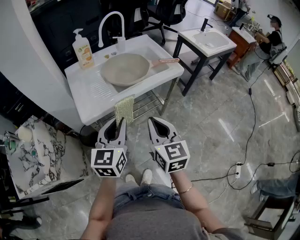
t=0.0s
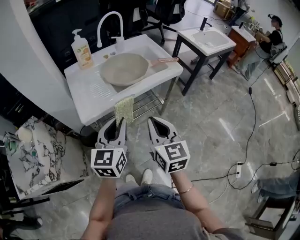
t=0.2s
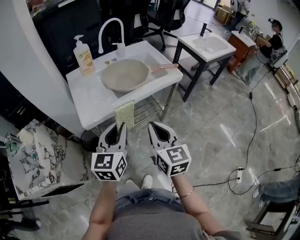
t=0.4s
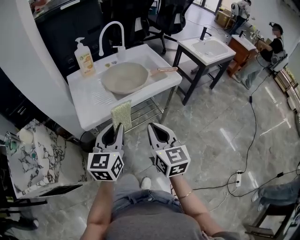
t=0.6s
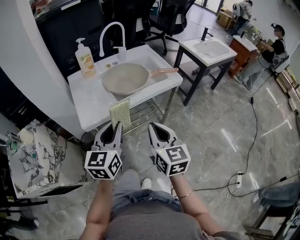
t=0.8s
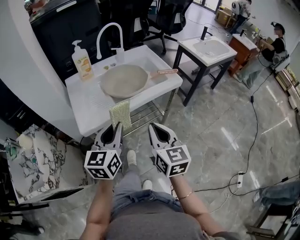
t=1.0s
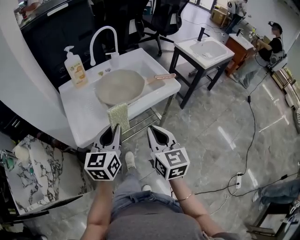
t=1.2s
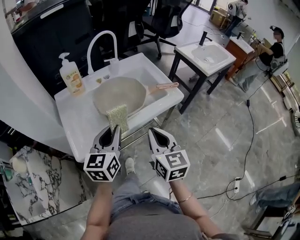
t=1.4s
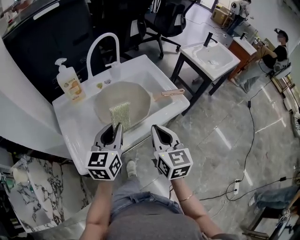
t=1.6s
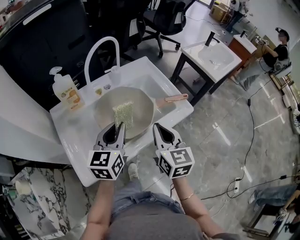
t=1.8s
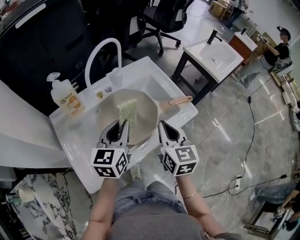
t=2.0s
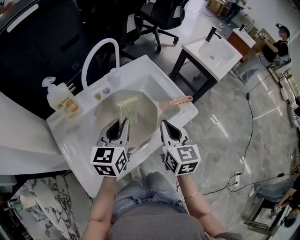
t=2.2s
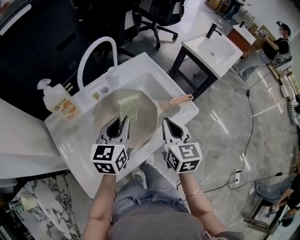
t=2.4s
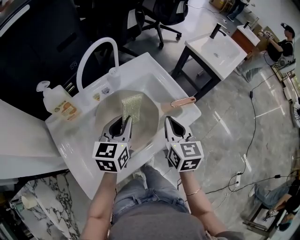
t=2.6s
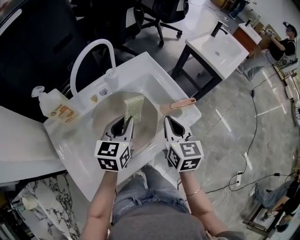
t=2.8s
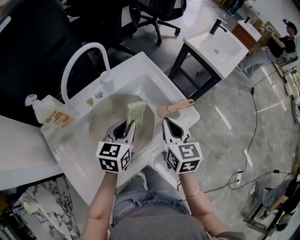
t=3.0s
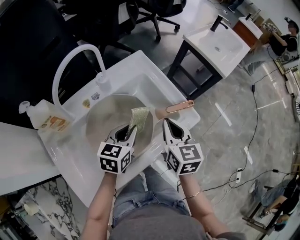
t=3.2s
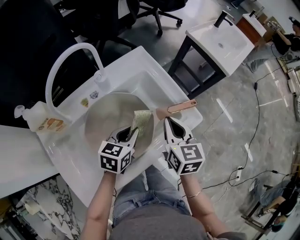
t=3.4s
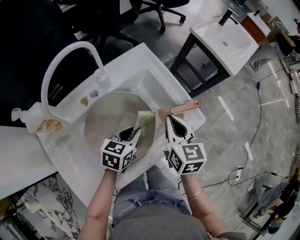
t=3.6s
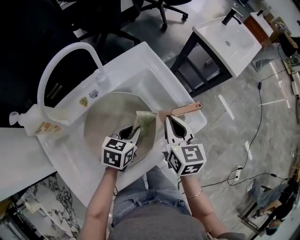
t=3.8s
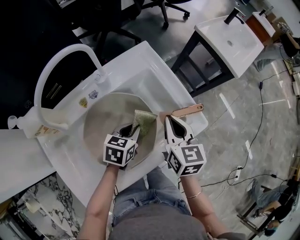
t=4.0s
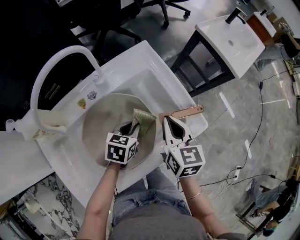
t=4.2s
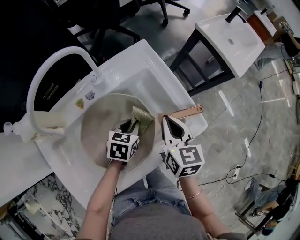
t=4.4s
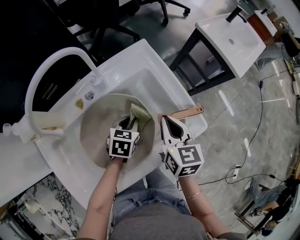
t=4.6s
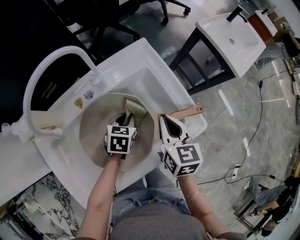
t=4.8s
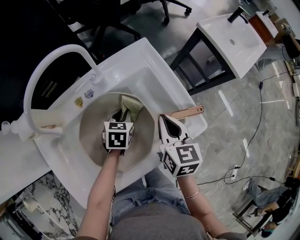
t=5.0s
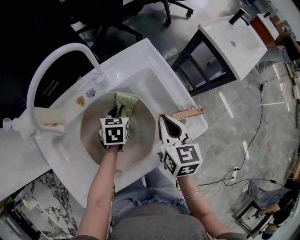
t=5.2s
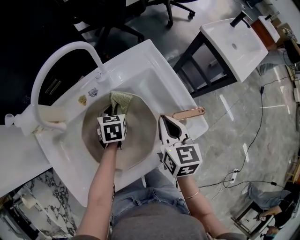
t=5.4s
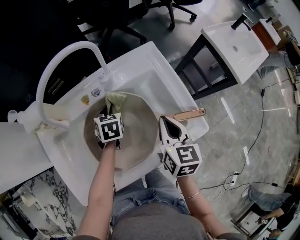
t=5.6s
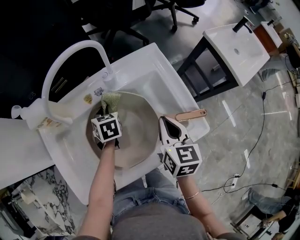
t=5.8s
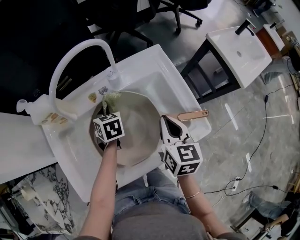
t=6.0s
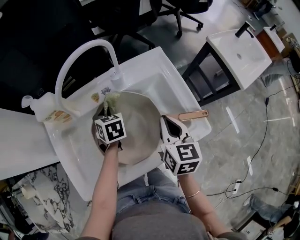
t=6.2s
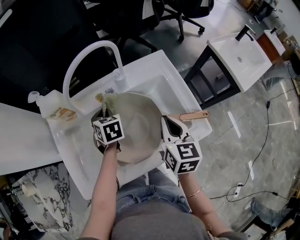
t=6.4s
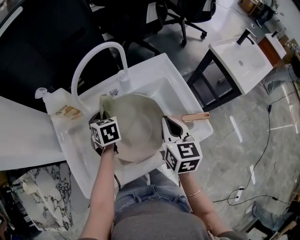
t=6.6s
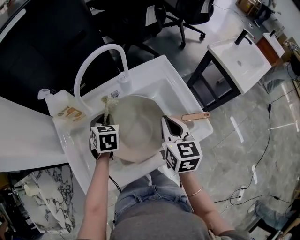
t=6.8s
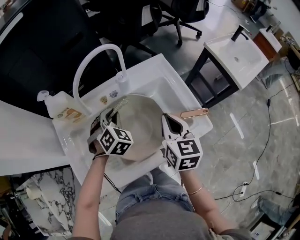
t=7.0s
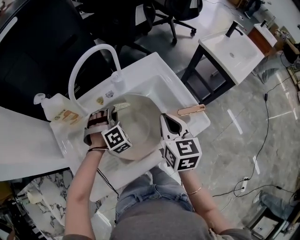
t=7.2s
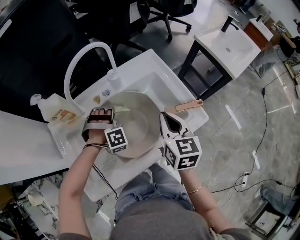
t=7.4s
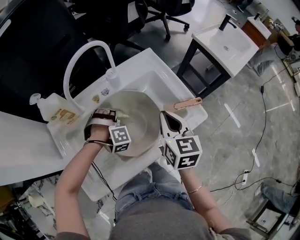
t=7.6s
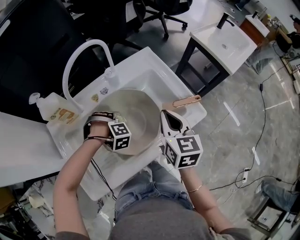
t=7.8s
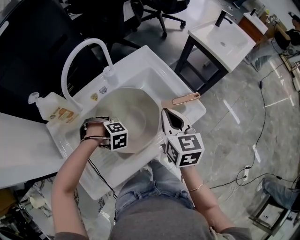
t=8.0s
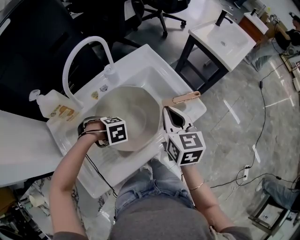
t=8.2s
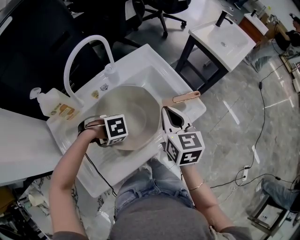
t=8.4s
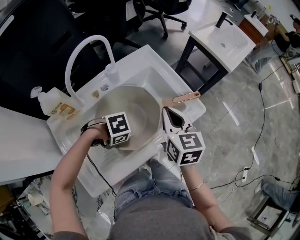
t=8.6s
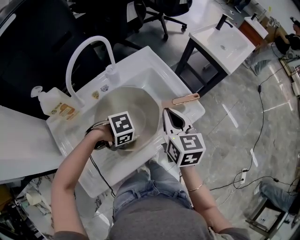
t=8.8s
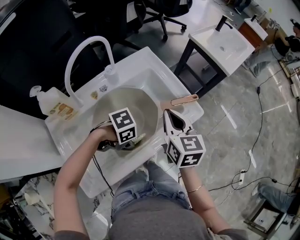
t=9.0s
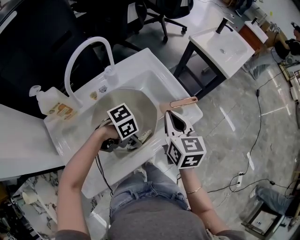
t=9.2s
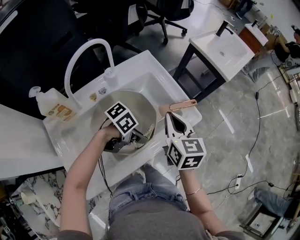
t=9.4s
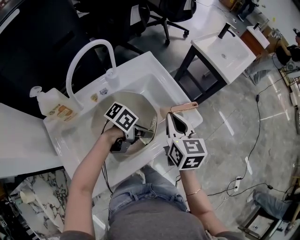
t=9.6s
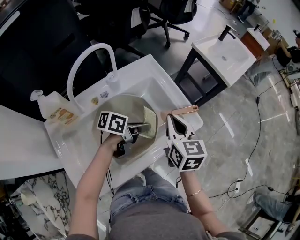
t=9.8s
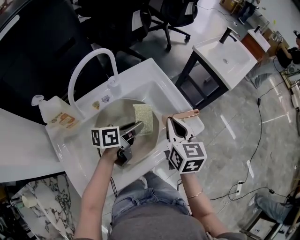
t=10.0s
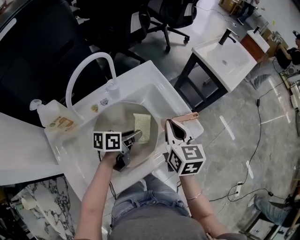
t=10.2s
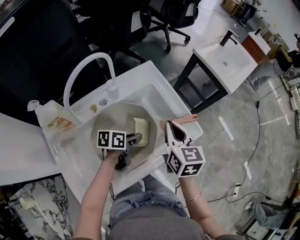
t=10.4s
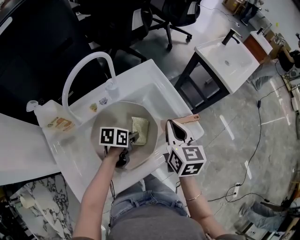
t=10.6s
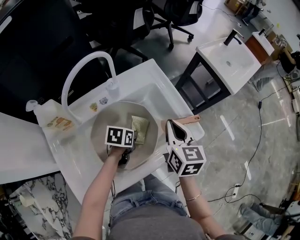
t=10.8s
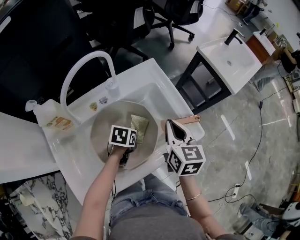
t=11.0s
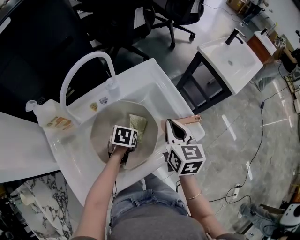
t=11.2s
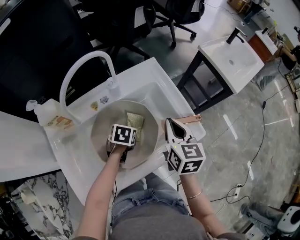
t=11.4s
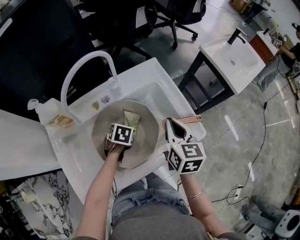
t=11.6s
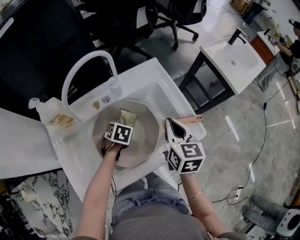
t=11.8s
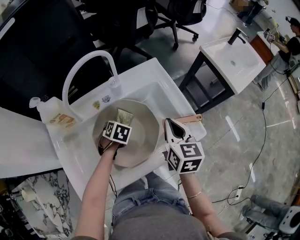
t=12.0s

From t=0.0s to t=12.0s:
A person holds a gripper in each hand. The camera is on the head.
From t=0.0s to t=1.6s: Both grippers move forward, some 25 cm.
From t=1.6s to t=3.0s: The right gripper moves forward, some 20 cm. The left gripper is displaced forward and downward by some 20 cm.
From t=3.0s to t=4.4s: The right gripper heads forward, covering about 5 cm. The left gripper heads downward and forward, covering some 15 cm, and turns by about 20 degrees.
From t=4.4s to t=6.0s: The left gripper ends up some 20 cm from where it was, and turns by some 40 degrees.
From t=6.0s to t=7.6s: The left gripper heads backward, covering about 5 cm, travels upward and back again, some 10 cm each way, and twists approximately 110 degrees clockwise, seen from behind; the right gripper shifts by about 5 cm.
From t=7.6s to t=9.0s: The left gripper changes place by about 20 cm, and rotates approximately 80 degrees.
From t=9.0s to t=10.4s: The left gripper reaches some 5 cm upward, then returns, and swivels about 70 degrees.
From t=10.4s to t=12.0s: The left gripper moves approximately 15 cm, and tips its fingers downward by about 40 degrees.

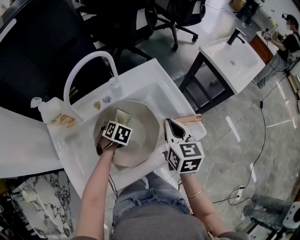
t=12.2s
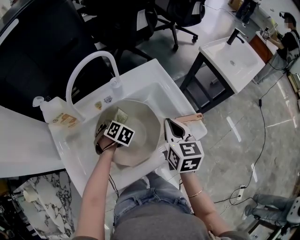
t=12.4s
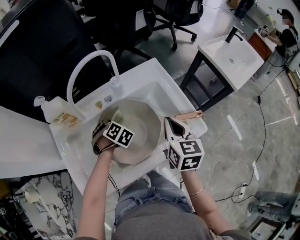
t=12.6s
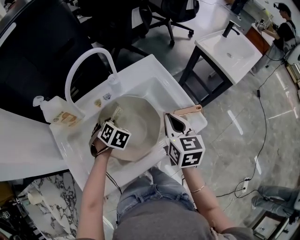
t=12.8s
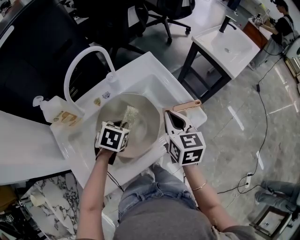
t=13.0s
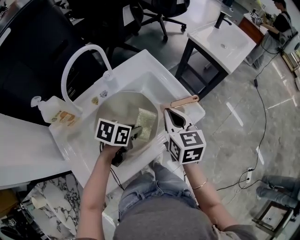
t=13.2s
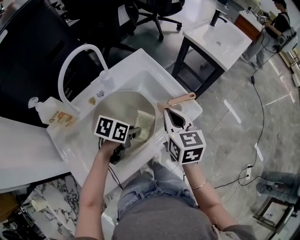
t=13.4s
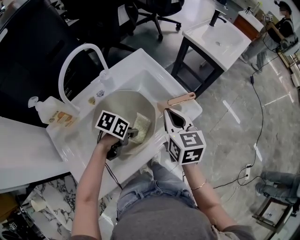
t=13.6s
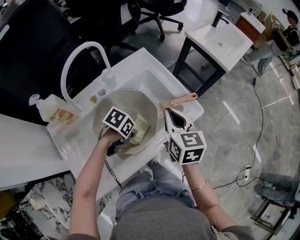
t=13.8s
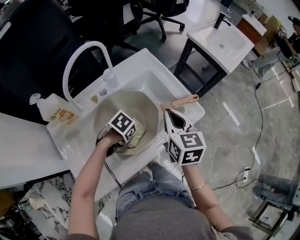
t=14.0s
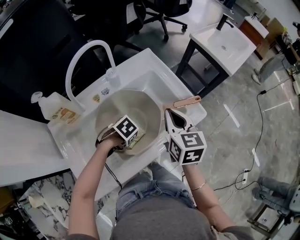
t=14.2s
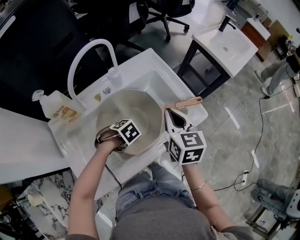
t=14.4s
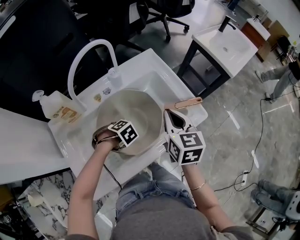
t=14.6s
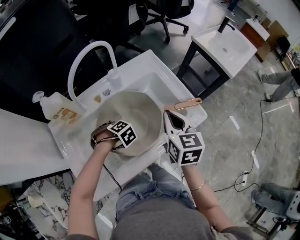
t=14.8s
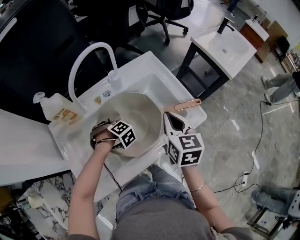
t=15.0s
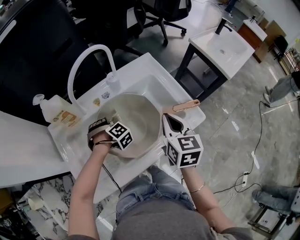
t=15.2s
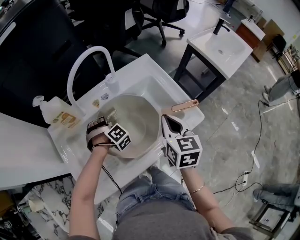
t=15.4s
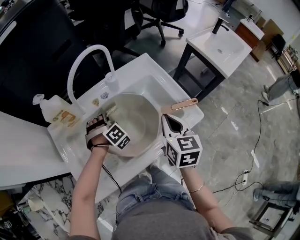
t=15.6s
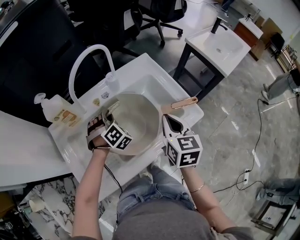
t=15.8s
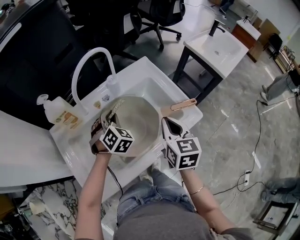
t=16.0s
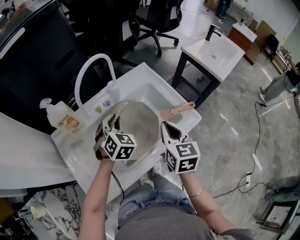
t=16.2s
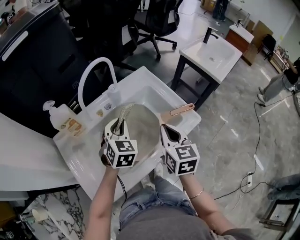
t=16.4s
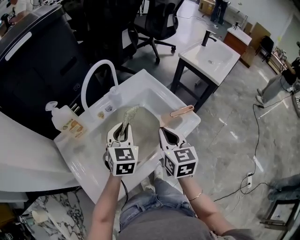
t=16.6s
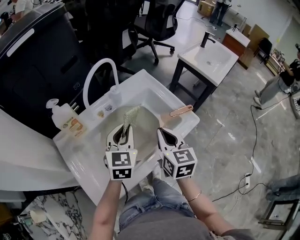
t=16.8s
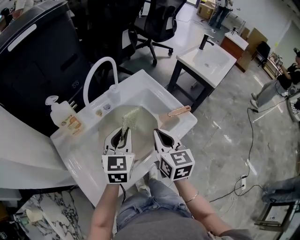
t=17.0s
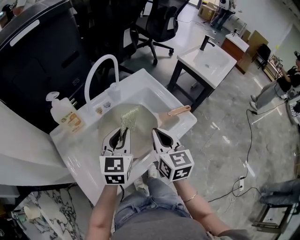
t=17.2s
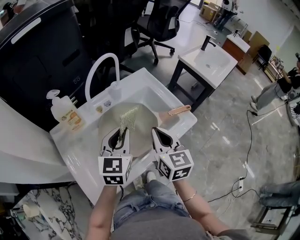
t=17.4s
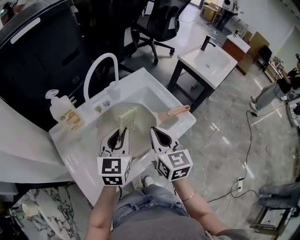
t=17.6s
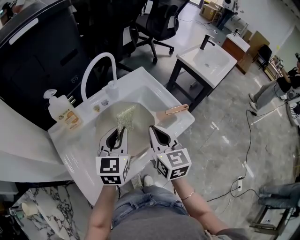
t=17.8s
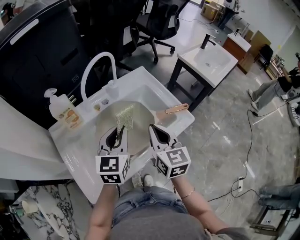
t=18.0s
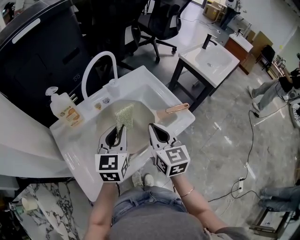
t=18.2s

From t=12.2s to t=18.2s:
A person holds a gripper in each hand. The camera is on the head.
From t=12.2s to t=13.8s: The left gripper goes upward and returns, approximately 10 cm each way, and turns by roughly 50 degrees.
From t=13.8s to t=15.2s: The left gripper ends up approximately 15 cm from where it was, and swivels roughly 70 degrees.
From t=15.2s to t=16.6s: The left gripper travels upward by roughly 20 cm, and angles its fingers upward, by some 40 degrees, while the right gripper moves about 5 cm.
From t=16.6s to t=18.2s: The left gripper moves backward, roughly 5 cm.

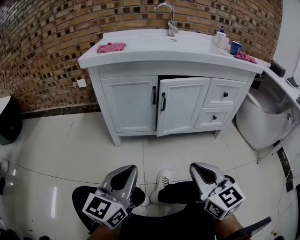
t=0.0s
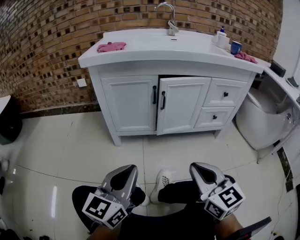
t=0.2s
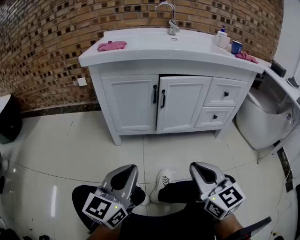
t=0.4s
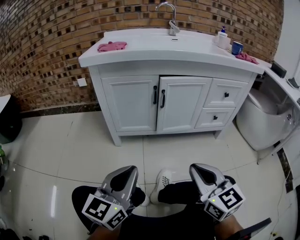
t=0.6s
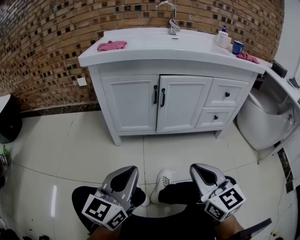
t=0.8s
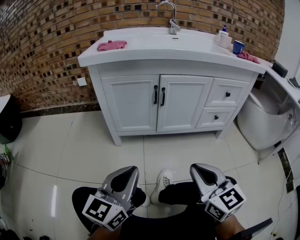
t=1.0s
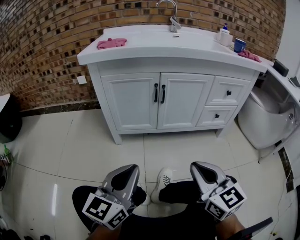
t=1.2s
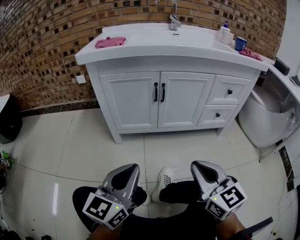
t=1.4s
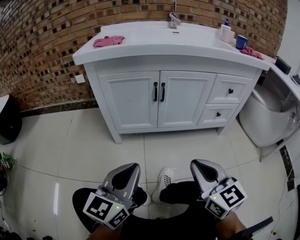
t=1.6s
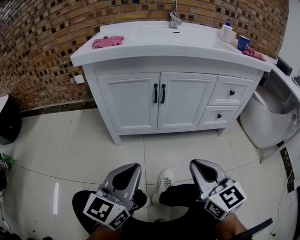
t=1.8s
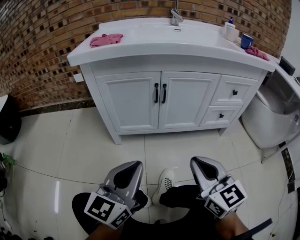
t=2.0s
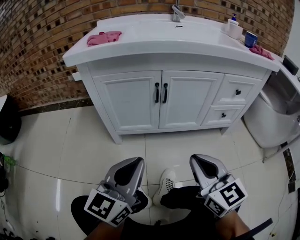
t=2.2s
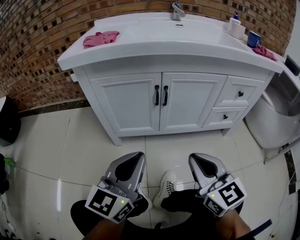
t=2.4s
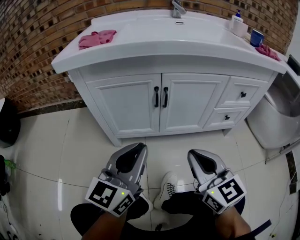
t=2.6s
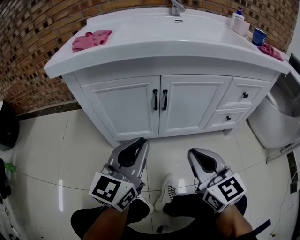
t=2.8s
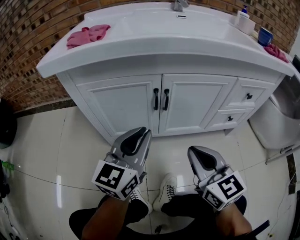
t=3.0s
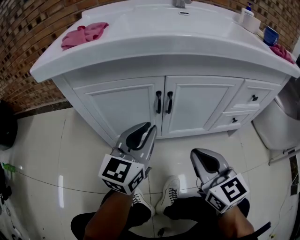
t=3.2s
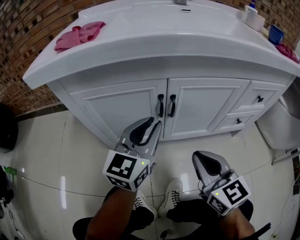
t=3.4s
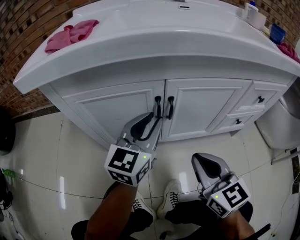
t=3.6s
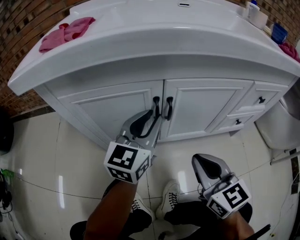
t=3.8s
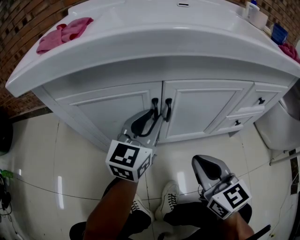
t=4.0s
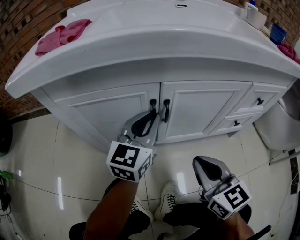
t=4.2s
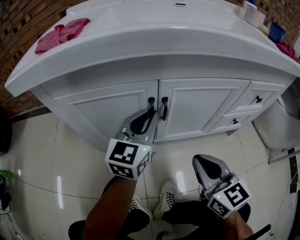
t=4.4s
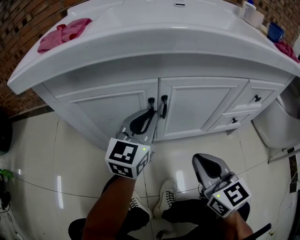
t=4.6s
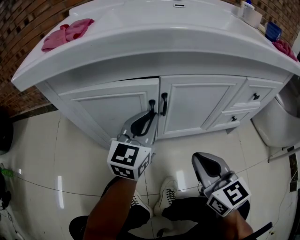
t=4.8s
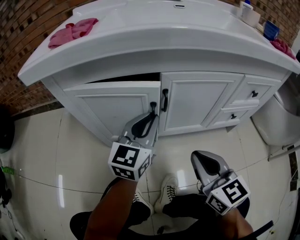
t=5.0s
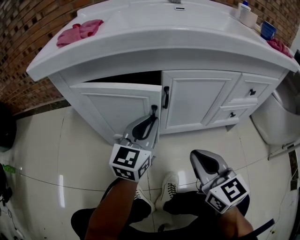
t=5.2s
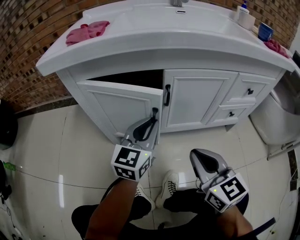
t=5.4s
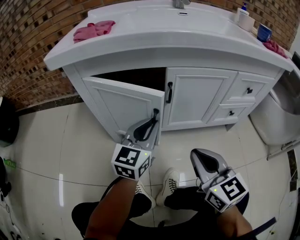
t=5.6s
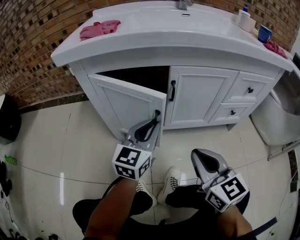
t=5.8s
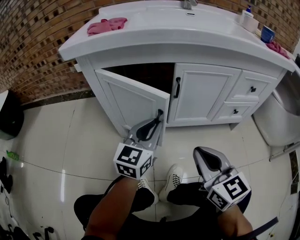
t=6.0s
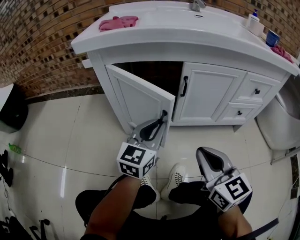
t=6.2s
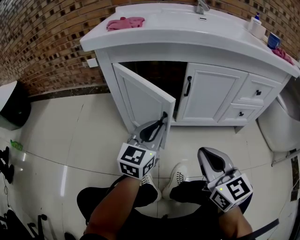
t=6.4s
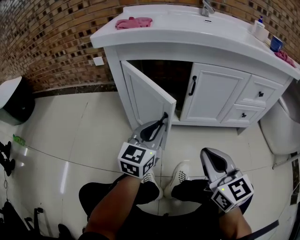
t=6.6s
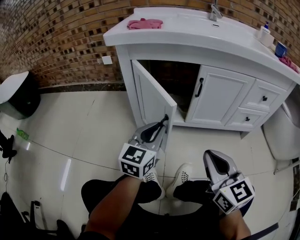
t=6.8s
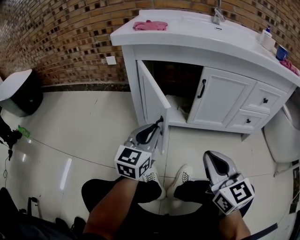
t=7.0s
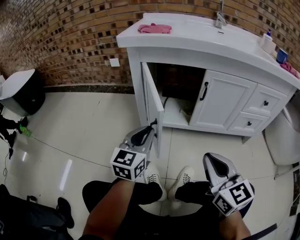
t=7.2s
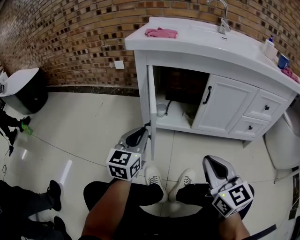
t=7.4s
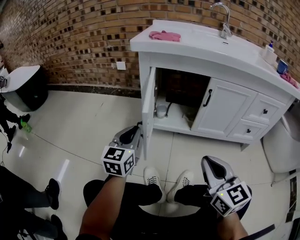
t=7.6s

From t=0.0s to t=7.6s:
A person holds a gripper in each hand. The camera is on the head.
From t=0.0s to t=1.6s: The grippers make only small movements.
From t=1.6s to t=3.0s: Both grippers move forward, about 20 cm.
From t=3.0s to t=4.6s: The left gripper is displaced forward by about 15 cm, while the right gripper shifts by about 5 cm.
From t=4.6s to t=6.0s: The grippers both shift backward by some 10 cm.
From t=6.0s to t=7.6s: The right gripper goes roughly 10 cm backward and to the left. The left gripper goes about 25 cm to the left and backward, and swivels about 20 degrees.
